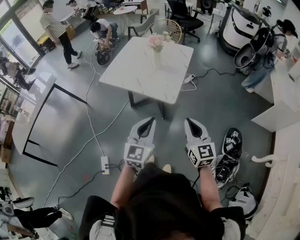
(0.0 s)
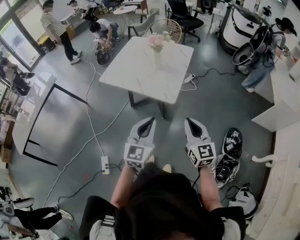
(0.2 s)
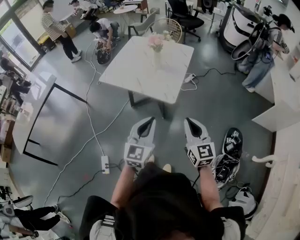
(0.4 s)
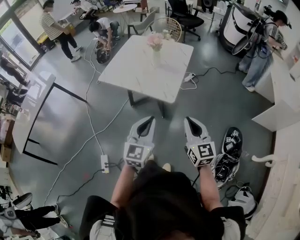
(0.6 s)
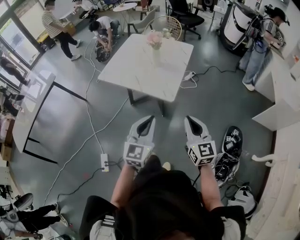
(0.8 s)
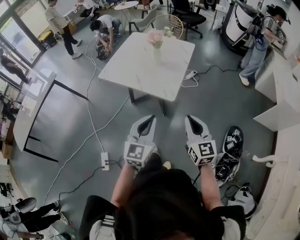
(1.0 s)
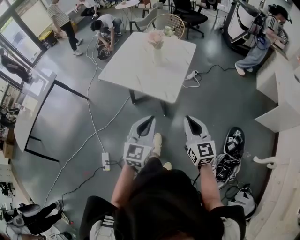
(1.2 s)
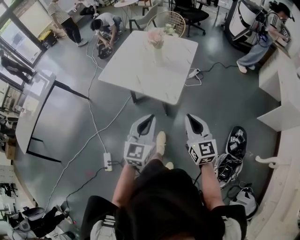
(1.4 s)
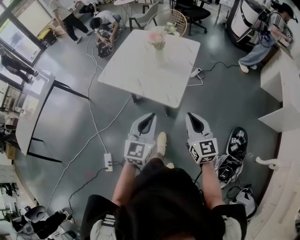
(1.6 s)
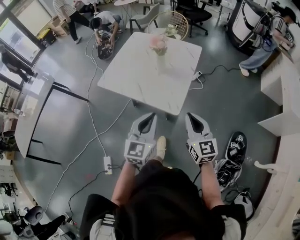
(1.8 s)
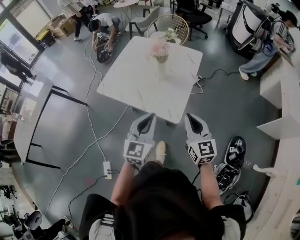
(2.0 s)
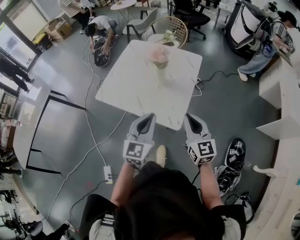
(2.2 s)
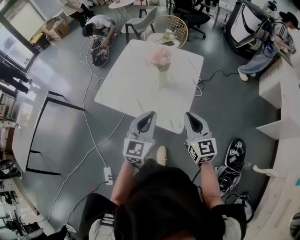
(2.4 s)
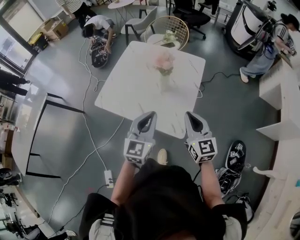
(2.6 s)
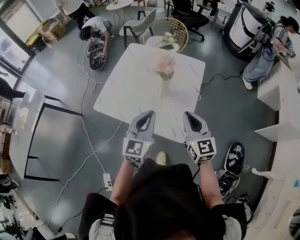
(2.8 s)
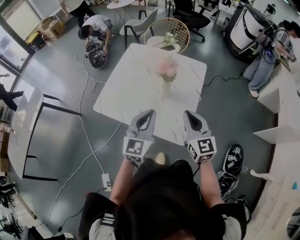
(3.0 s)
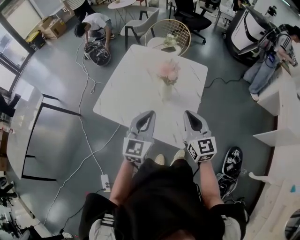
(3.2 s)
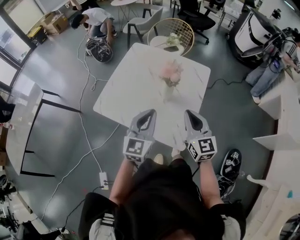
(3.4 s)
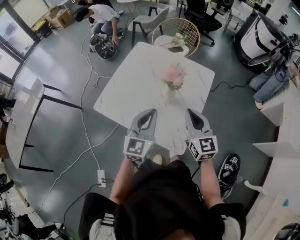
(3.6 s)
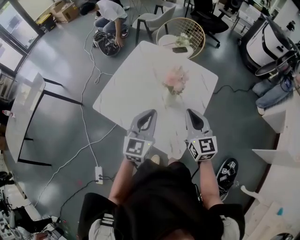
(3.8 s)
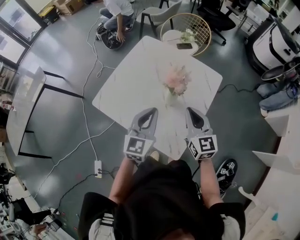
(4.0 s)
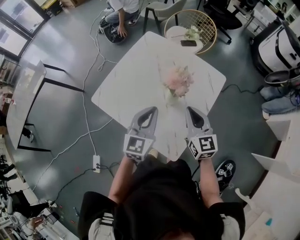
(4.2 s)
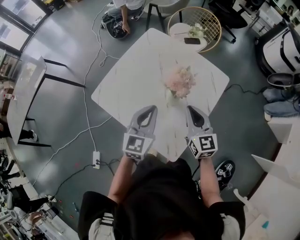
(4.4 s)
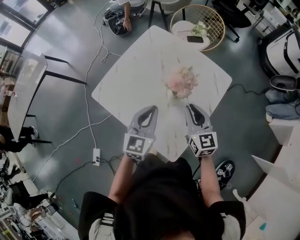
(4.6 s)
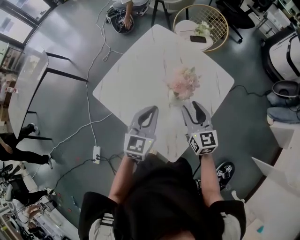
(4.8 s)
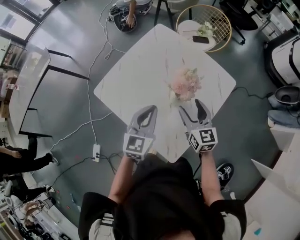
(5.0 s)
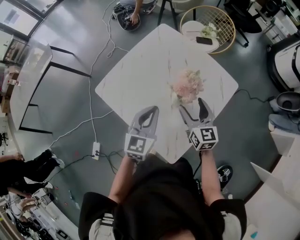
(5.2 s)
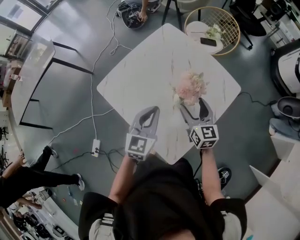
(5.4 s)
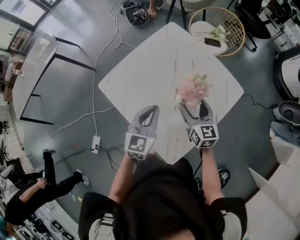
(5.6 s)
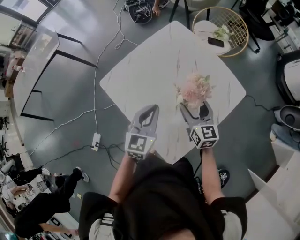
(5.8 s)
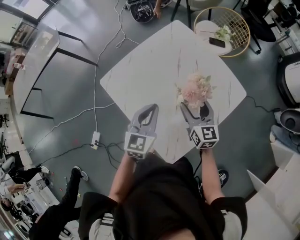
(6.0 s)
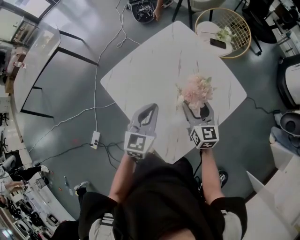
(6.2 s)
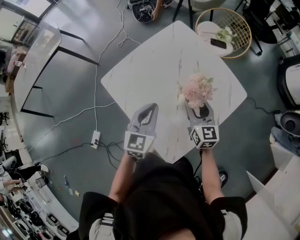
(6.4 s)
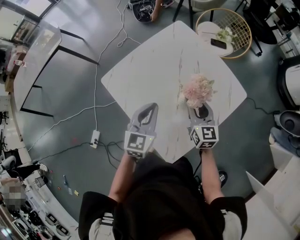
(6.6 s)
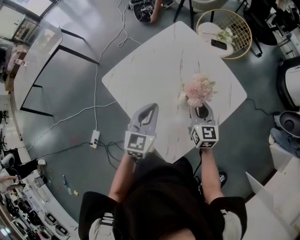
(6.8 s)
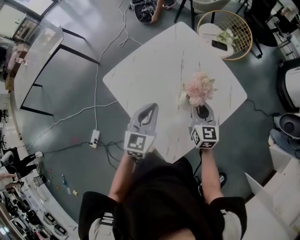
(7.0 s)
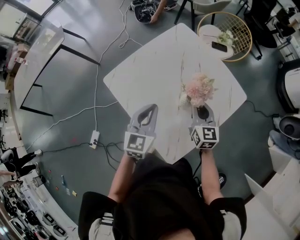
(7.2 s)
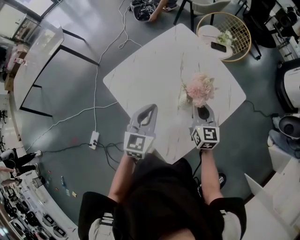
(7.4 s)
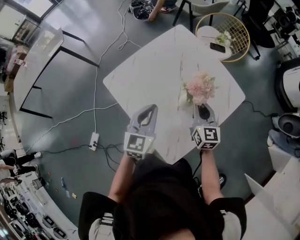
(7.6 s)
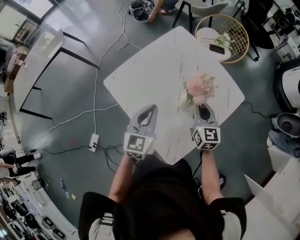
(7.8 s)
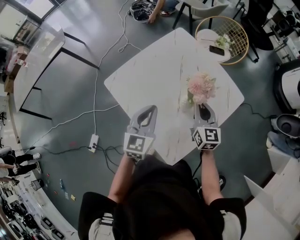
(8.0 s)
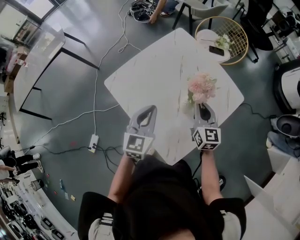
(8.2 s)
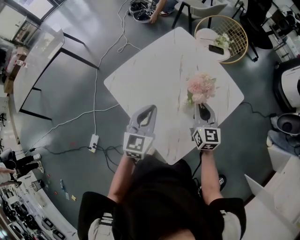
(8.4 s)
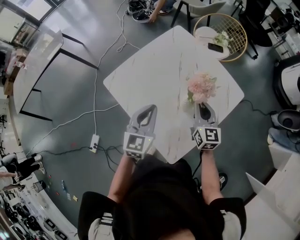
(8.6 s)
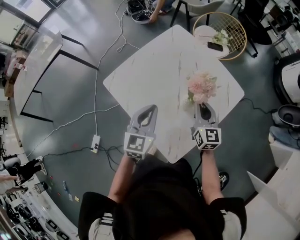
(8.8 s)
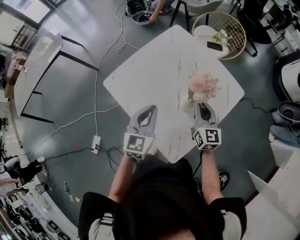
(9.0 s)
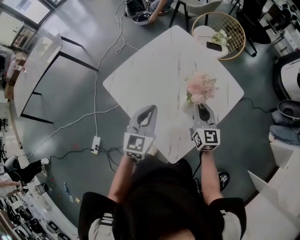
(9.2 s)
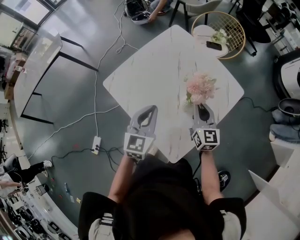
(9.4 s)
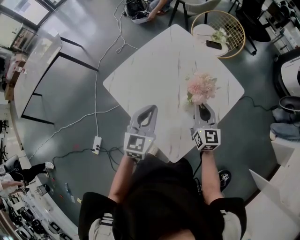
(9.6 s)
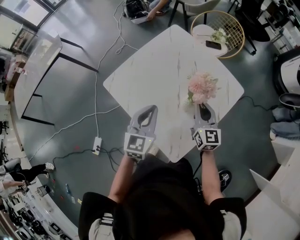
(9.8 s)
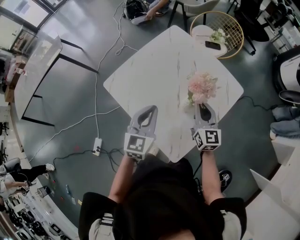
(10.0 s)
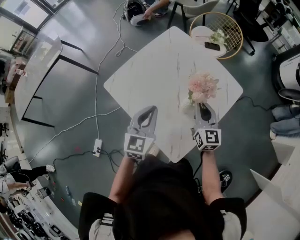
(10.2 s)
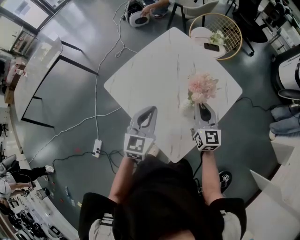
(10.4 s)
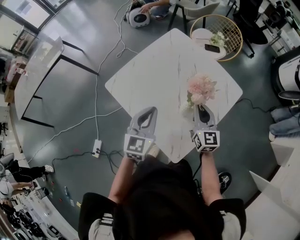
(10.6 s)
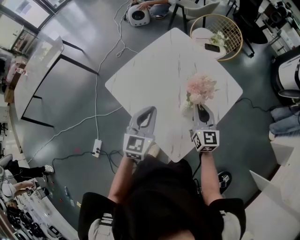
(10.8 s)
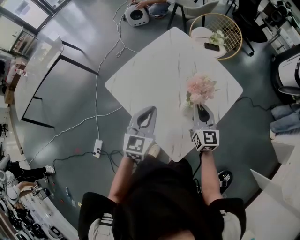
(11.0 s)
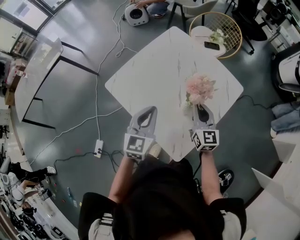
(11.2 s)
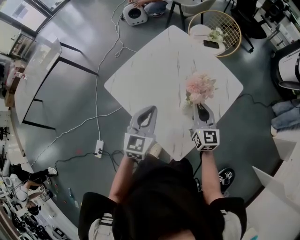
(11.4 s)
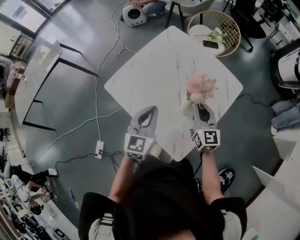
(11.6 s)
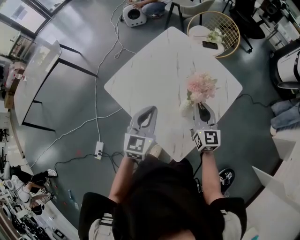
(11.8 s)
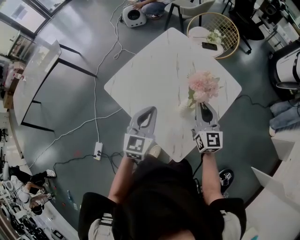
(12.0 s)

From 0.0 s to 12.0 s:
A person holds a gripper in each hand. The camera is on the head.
From 0.0 s to 1.6 s: Both grippers travel together forward, about 10 cm.
From 1.6 s to 3.0 s: The grippers both shift forward by roughly 25 cm.
From 3.0 s to 4.4 s: The right gripper goes roughly 20 cm forward. Meanwhile the left gripper is displaced forward and downward by about 15 cm.
From 4.4 s to 6.0 s: The right gripper shifts about 10 cm forward and downward, and opens up. Meanwhile the left gripper shifts by approximately 5 cm.
From 6.0 s to 7.6 s: The right gripper closes its fingers.
From 7.6 s to 10.4 s: The grippers stay close to where they were, moving slightly.
From 10.4 s to 12.0 s: The grippers make only small movements.

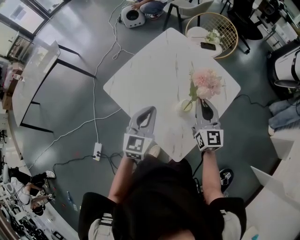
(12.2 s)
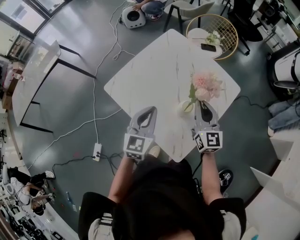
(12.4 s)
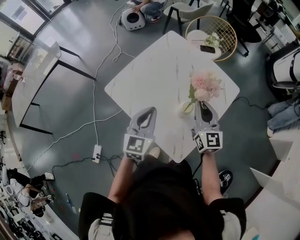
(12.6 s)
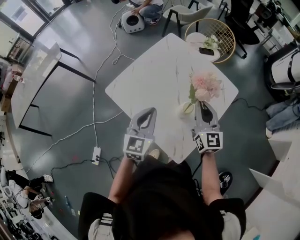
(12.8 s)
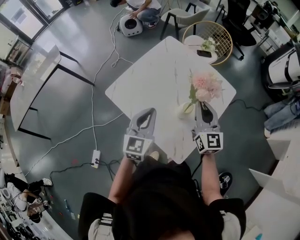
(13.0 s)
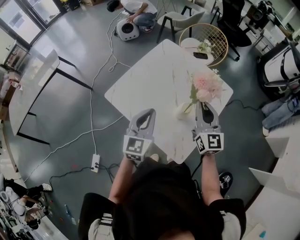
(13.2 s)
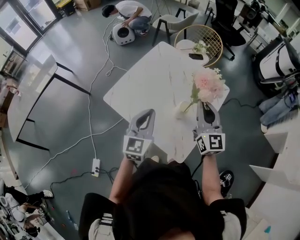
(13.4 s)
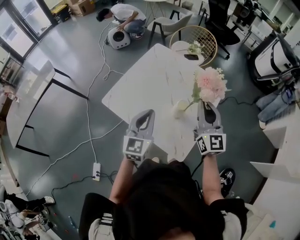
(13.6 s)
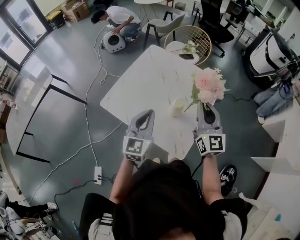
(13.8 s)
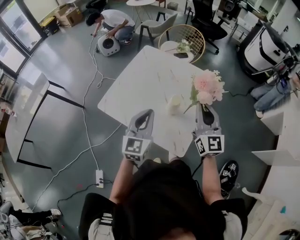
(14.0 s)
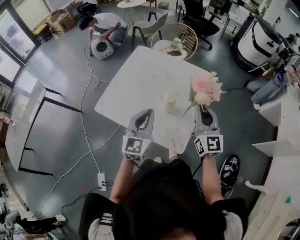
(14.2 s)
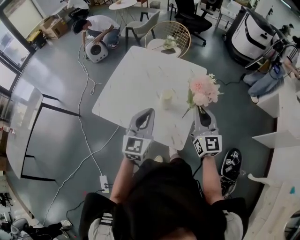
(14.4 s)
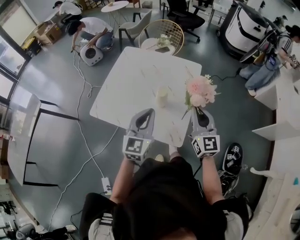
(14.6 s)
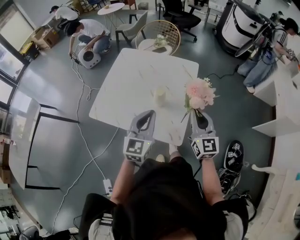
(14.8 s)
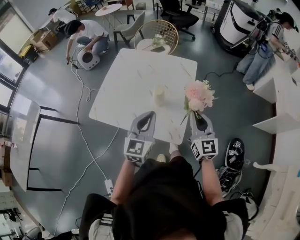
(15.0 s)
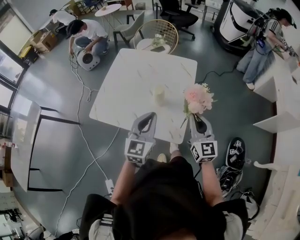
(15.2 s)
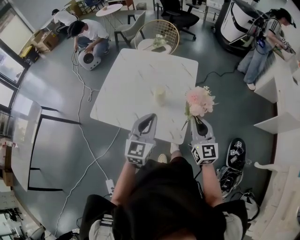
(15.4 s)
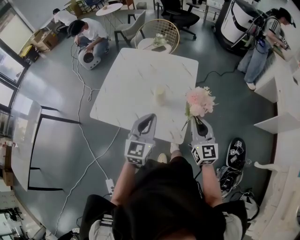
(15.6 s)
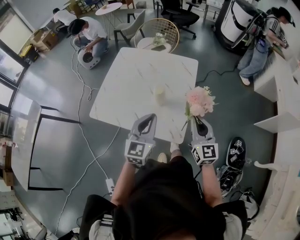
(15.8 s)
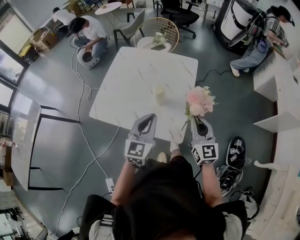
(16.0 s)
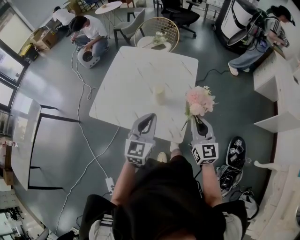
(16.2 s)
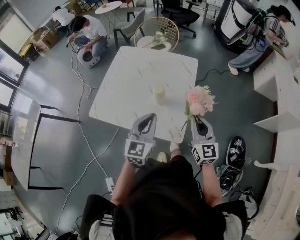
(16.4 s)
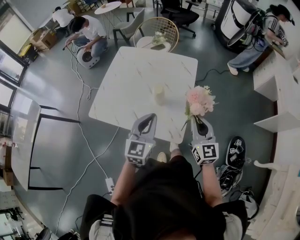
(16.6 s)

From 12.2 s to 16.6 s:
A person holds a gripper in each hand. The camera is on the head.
From 12.2 s to 13.6 s: The right gripper is displaced upward and backward by about 10 cm. The left gripper moves about 5 cm.
From 13.6 s to 15.2 s: The right gripper moves backward, to the right and downward, about 20 cm. Meanwhile the left gripper goes approximately 15 cm to the right and backward, and rotates roughly 20 degrees.
From 15.2 s to 16.6 s: Both grippers stay about where they are.

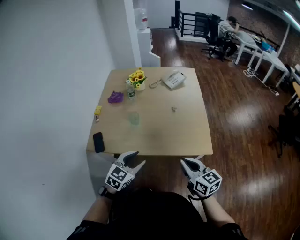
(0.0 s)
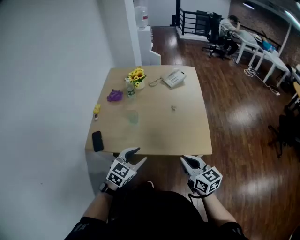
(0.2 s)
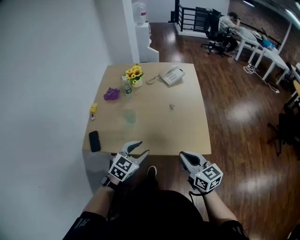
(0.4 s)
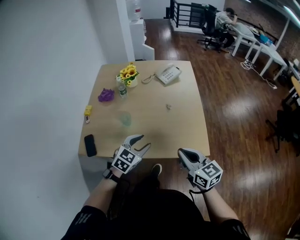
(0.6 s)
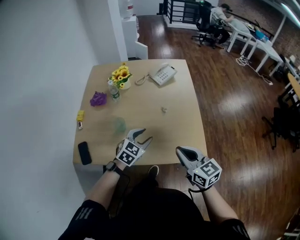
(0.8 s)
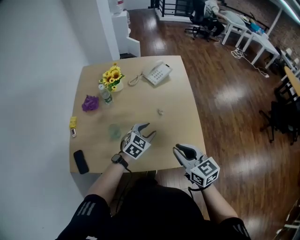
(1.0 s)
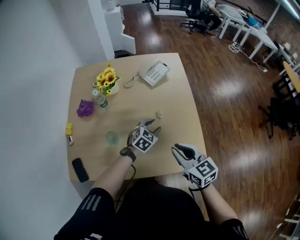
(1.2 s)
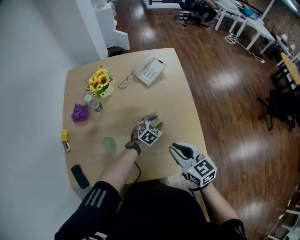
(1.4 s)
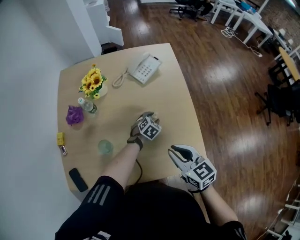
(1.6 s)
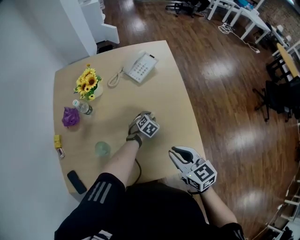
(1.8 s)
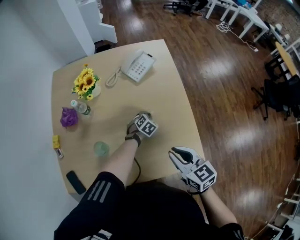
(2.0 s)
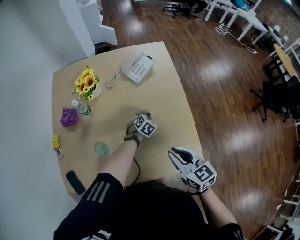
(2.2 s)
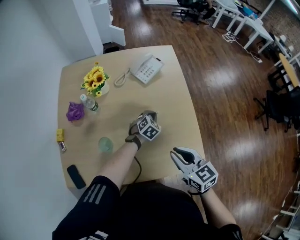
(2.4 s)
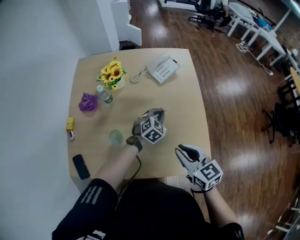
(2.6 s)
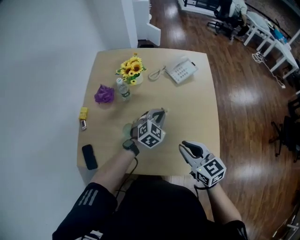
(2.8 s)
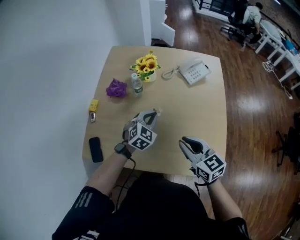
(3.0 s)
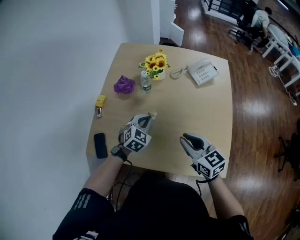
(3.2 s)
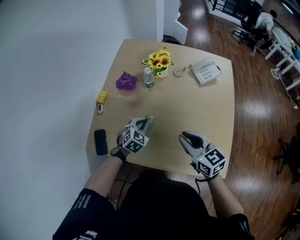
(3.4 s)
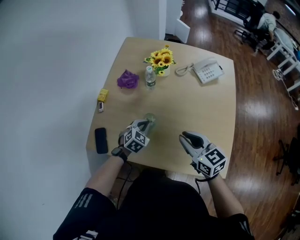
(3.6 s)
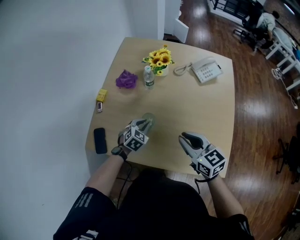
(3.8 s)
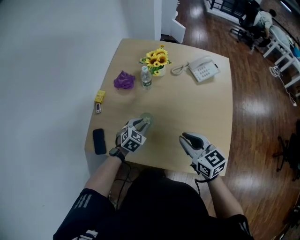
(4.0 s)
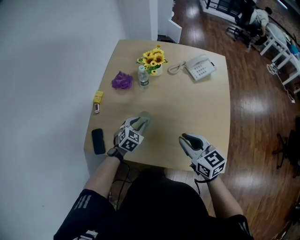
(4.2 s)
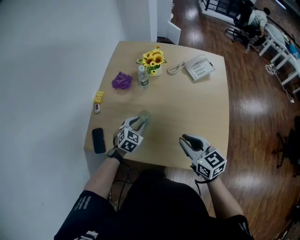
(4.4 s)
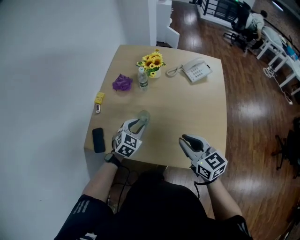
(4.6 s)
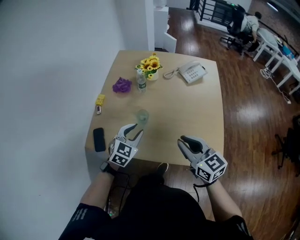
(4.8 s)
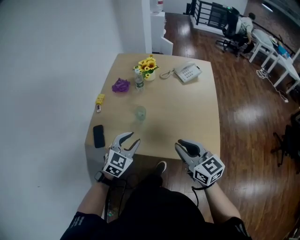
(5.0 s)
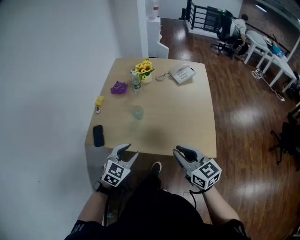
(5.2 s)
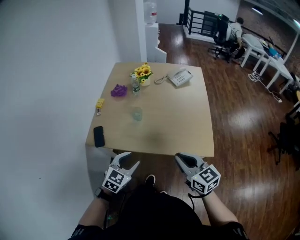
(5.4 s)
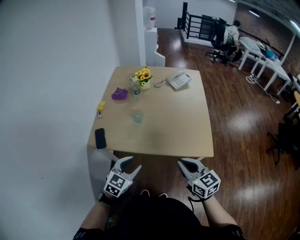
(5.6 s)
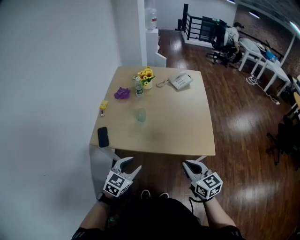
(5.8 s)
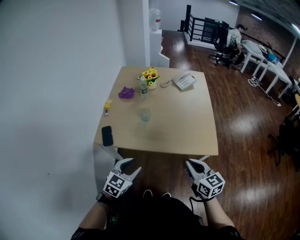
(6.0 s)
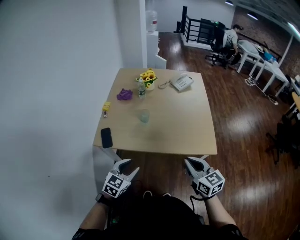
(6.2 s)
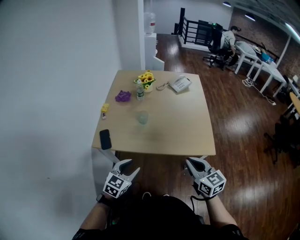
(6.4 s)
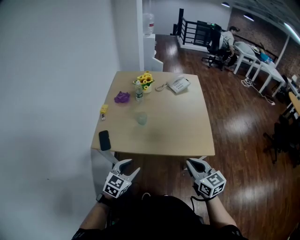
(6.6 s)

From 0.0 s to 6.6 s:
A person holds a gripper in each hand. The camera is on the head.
From 0.0 s to 1.6 s: The left gripper goes roughly 50 cm forward and downward, and changes its angle by some 30 degrees. Meanwhile the right gripper shifts roughly 30 cm forward.
From 1.6 s to 3.2 s: The left gripper travels to the left and upward by roughly 35 cm, turns by roughly 30 degrees, and closes up. The right gripper shifts some 15 cm to the left.
From 3.2 s to 5.0 s: Both grippers travel together backward, roughly 20 cm. The left gripper opens its fingers.
From 5.0 s to 6.6 s: Both grippers travel together backward, about 20 cm.

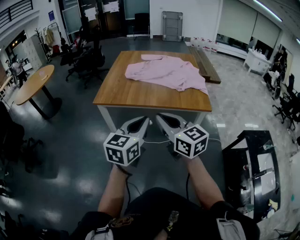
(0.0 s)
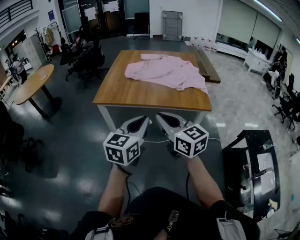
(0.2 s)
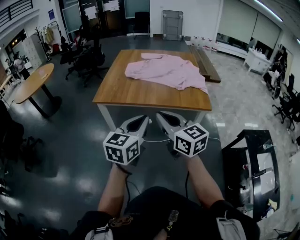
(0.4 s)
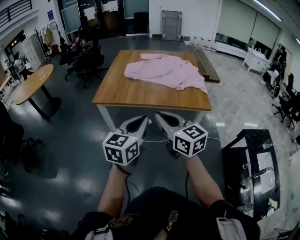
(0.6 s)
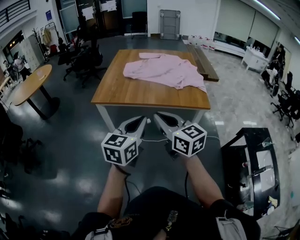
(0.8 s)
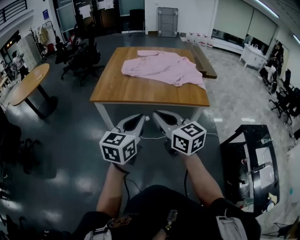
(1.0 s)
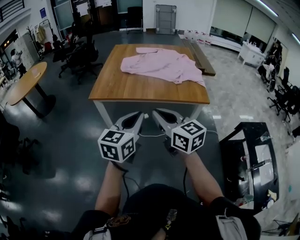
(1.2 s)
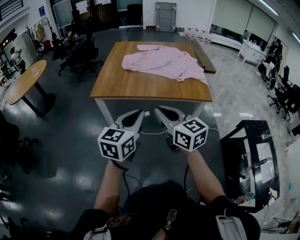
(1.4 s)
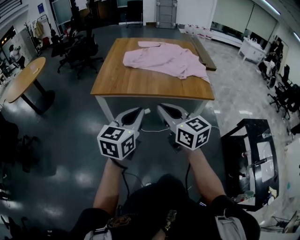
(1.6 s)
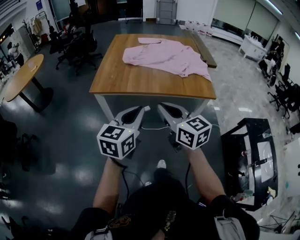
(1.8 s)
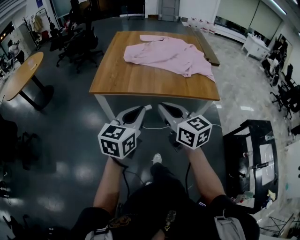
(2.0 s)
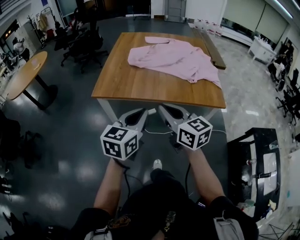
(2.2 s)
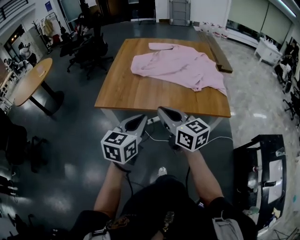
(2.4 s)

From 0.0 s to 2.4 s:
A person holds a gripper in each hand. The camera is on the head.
From 0.0 s to 1.2 s: The grippers make only small movements.
From 1.2 s to 2.4 s: Both grippers travel together forward, roughly 20 cm.
